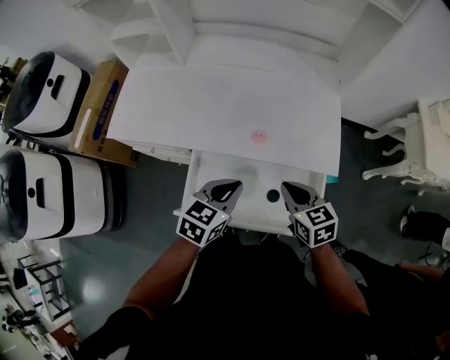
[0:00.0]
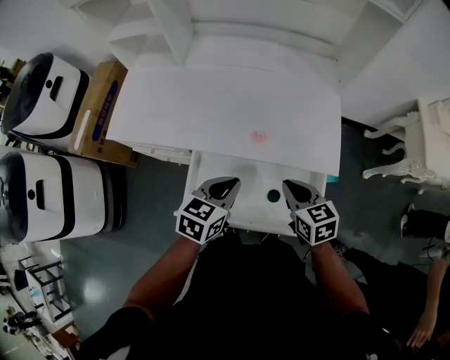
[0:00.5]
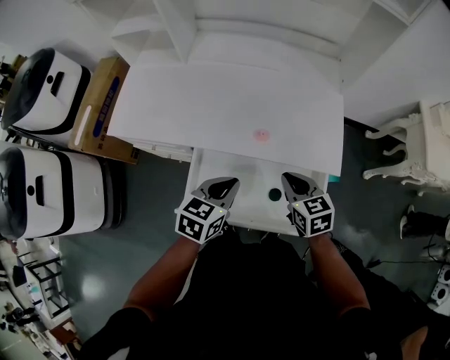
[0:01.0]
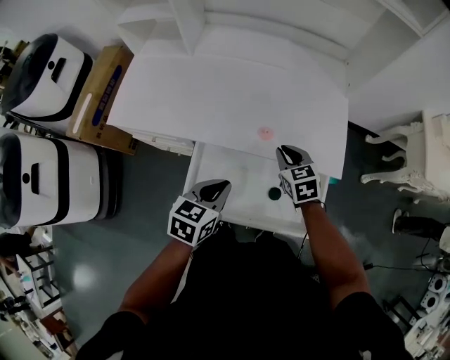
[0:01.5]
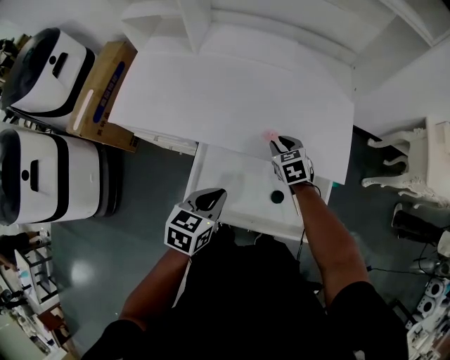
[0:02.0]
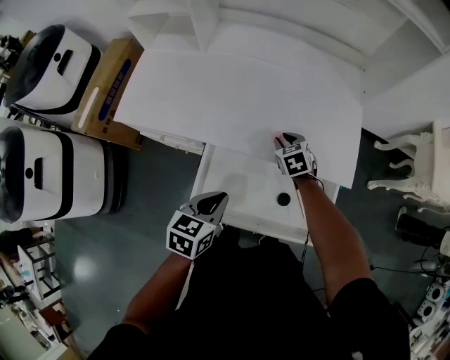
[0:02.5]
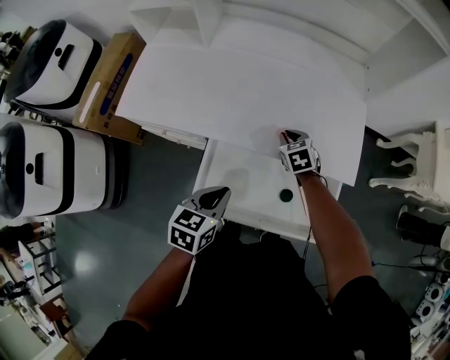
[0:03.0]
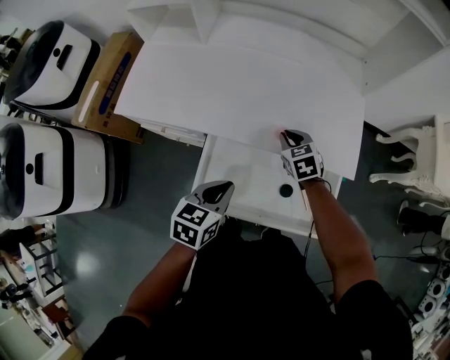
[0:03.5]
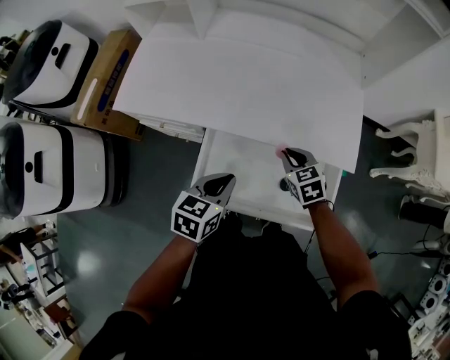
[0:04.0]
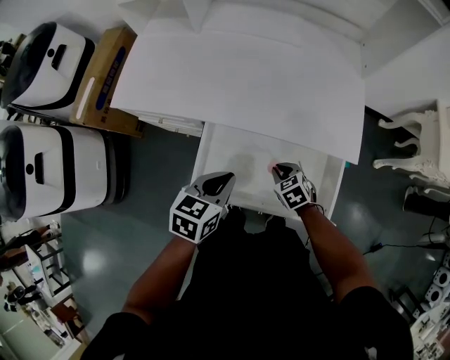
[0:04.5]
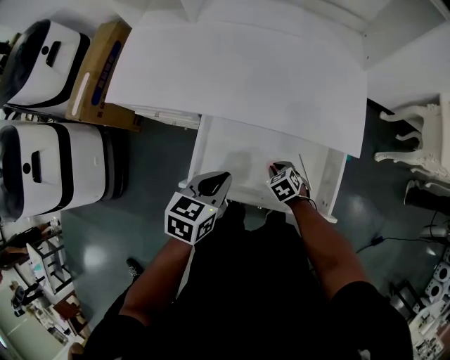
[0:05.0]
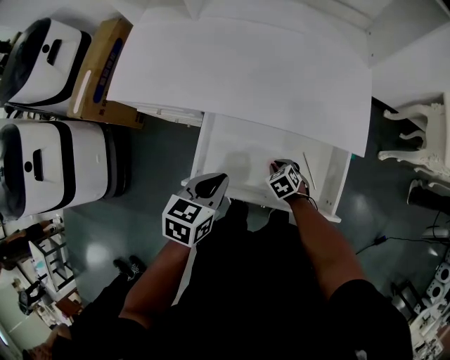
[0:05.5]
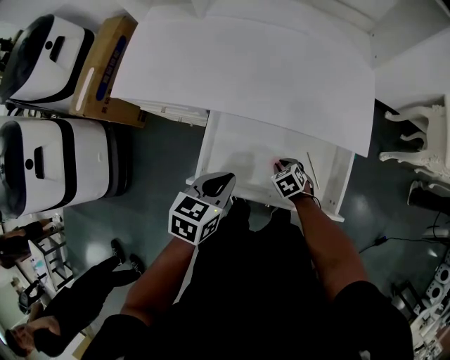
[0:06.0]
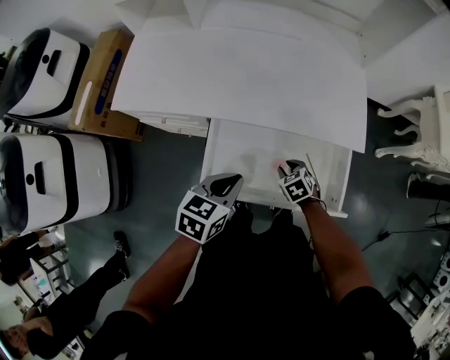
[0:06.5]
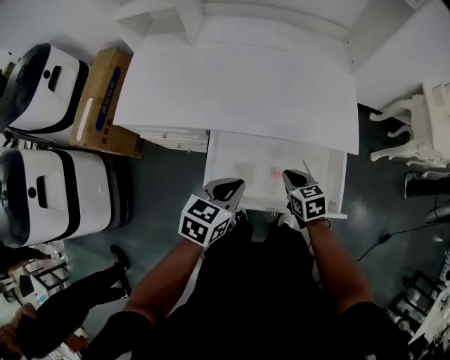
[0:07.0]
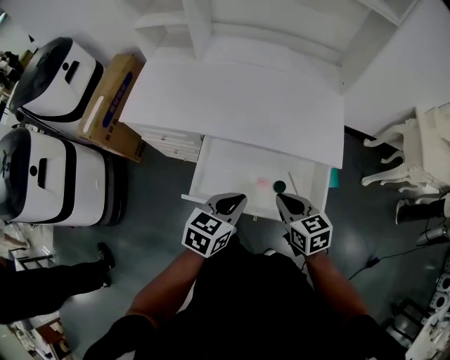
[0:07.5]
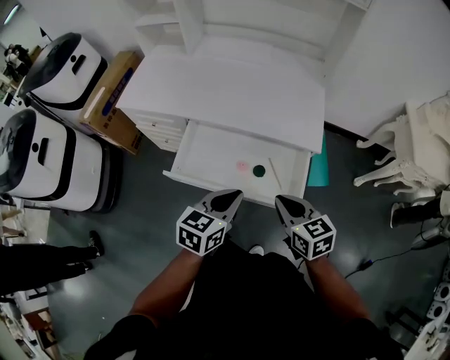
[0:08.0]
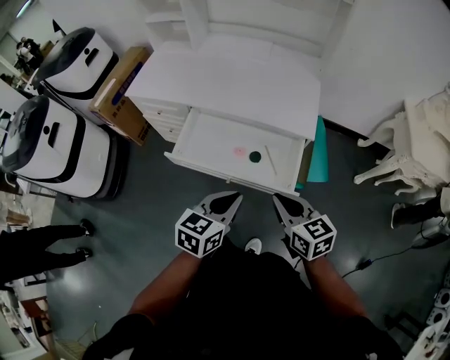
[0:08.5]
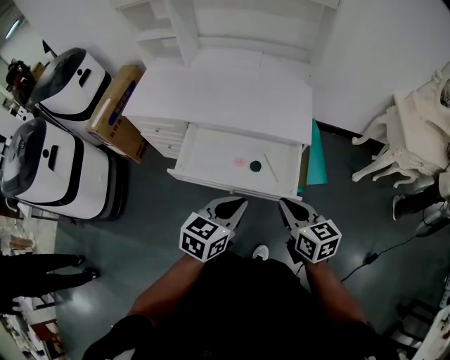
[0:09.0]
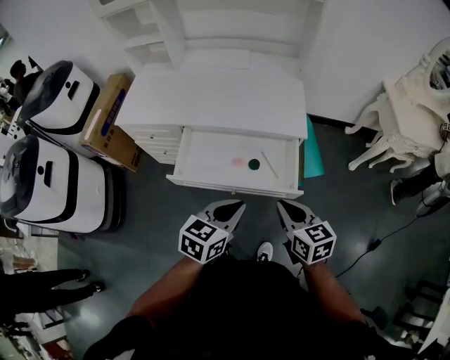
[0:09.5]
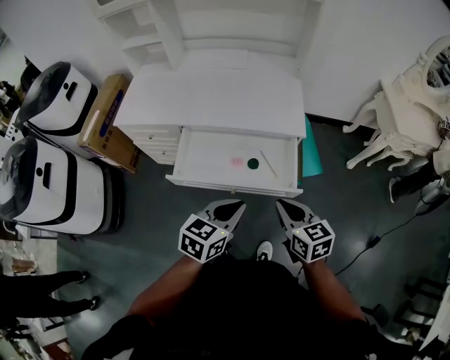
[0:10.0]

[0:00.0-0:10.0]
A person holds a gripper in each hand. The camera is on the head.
0:00.0 to 0:02.0: The right gripper heads forward, downward and to the left, covering some 20 cm, while the left gripper shifts some 5 cm to the left.
0:02.0 to 0:04.0: The right gripper goes approximately 10 cm backward.
0:04.0 to 0:06.0: The right gripper travels downward and backward by roughly 20 cm, and rotates about 20 degrees.
0:06.0 to 0:08.0: The left gripper moves to the right, backward and upward, about 20 cm. The right gripper heads upward, backward and to the right, covering some 35 cm, and angles its fingers upward, by roughly 40 degrees.
0:08.0 to 0:10.0: Both grippers move backward, some 10 cm.

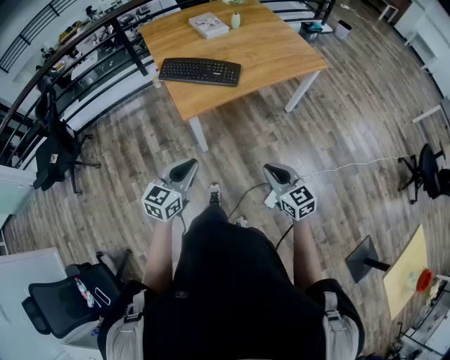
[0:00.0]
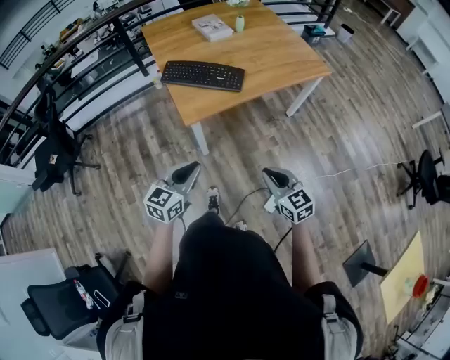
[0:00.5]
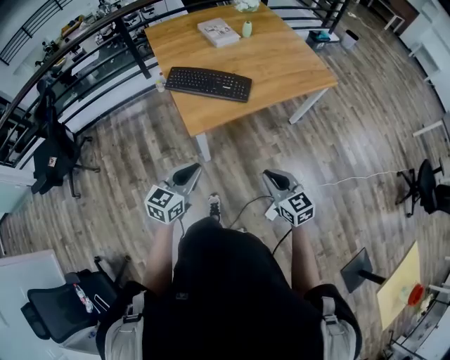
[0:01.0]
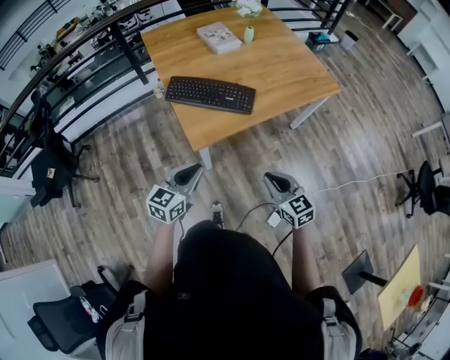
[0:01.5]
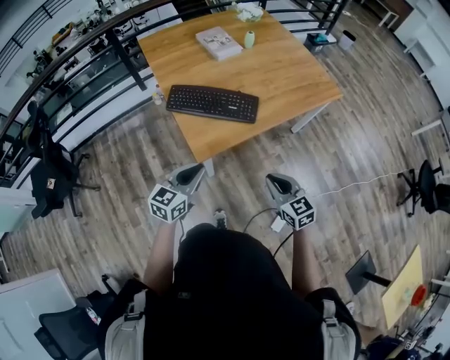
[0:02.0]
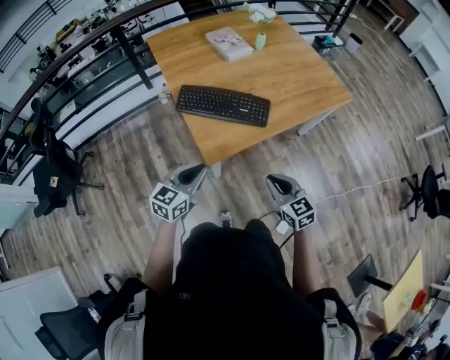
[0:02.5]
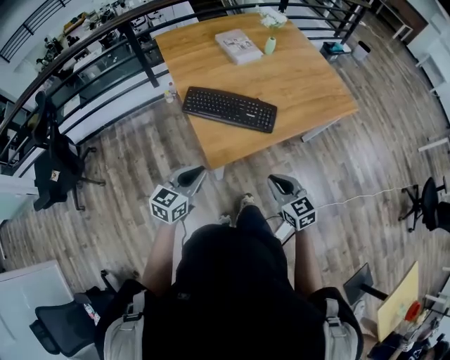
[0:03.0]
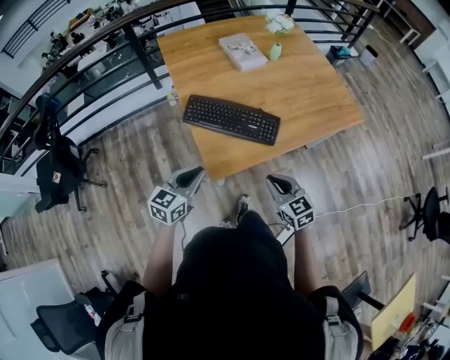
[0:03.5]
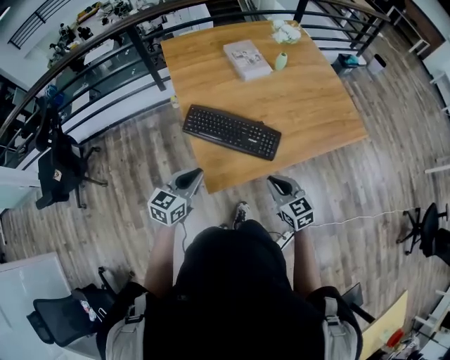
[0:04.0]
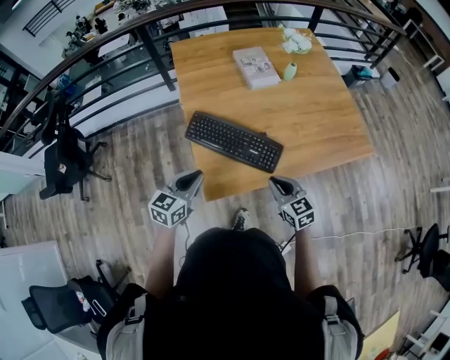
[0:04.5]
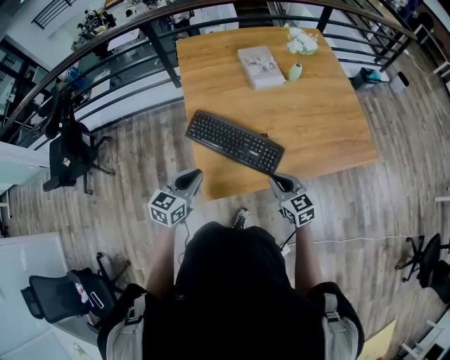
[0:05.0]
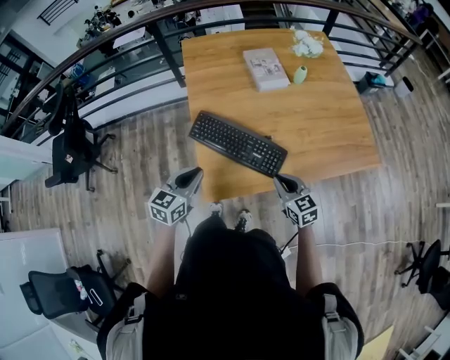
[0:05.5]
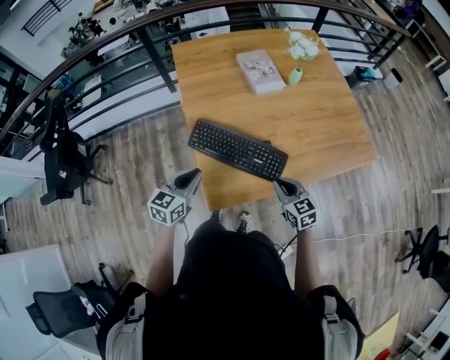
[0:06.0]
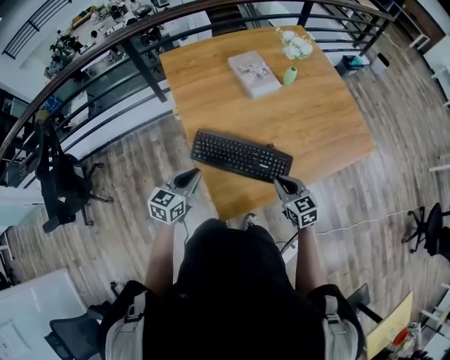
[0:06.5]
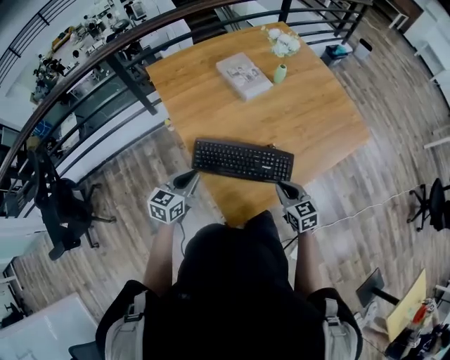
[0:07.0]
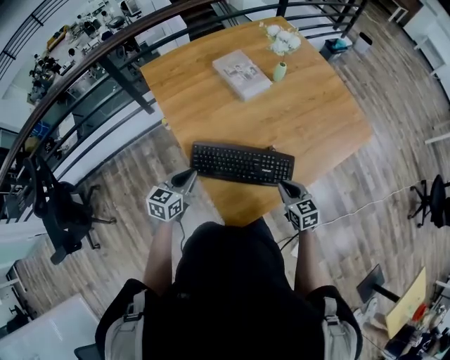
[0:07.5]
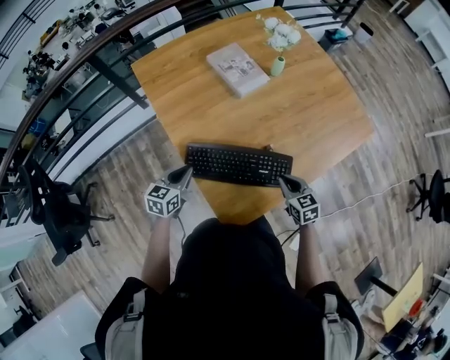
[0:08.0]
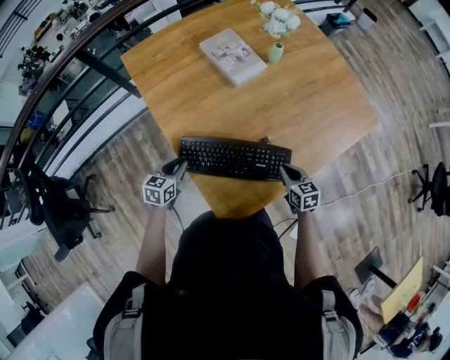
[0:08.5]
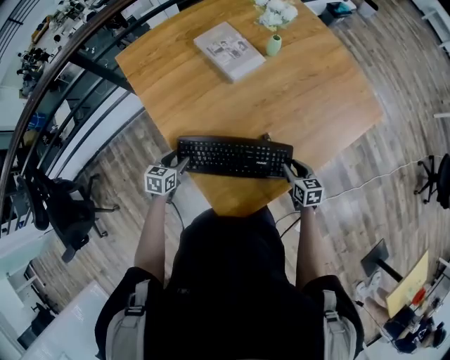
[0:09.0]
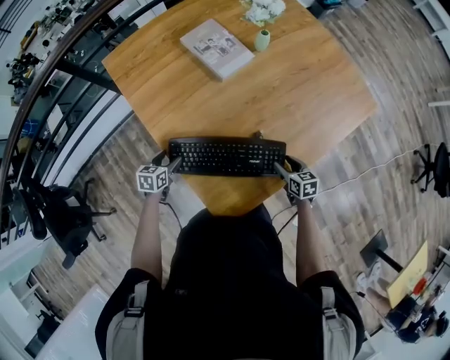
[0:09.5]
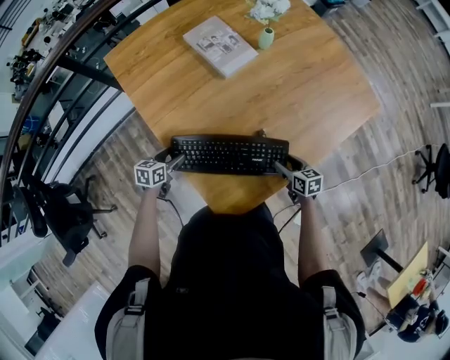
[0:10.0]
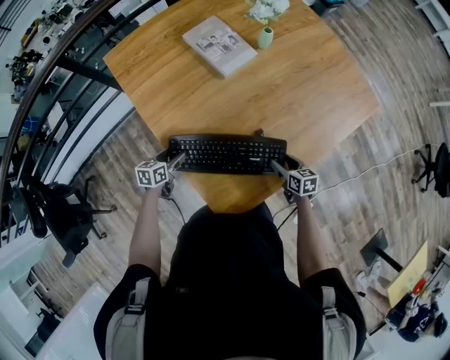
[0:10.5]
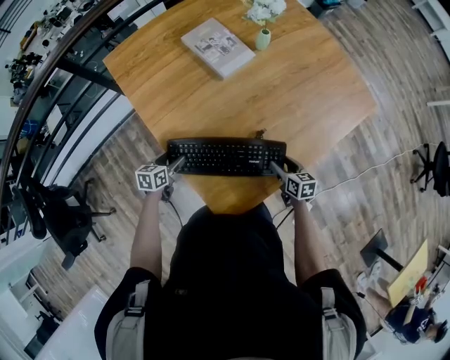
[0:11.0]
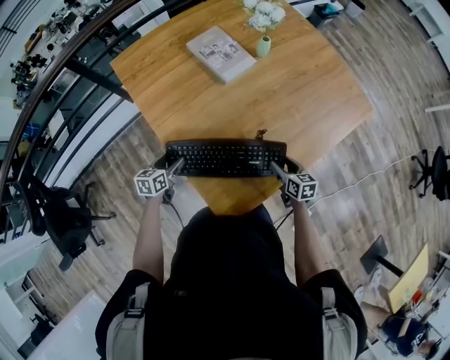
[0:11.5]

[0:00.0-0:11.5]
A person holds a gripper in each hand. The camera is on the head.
0:00.0 to 0:02.0: The left gripper moves forward, approximately 25 cm. Meanwhile the right gripper moves forward and to the left, about 20 cm.
0:02.0 to 0:04.0: The grippers both shift forward by approximately 15 cm.
0:04.0 to 0:06.0: Both grippers move forward, roughly 10 cm.
0:06.0 to 0:07.5: The right gripper shifts roughly 5 cm downward; the left gripper heads forward, to the left and downward, covering roughly 15 cm.
0:07.5 to 0:09.5: The left gripper travels downward and forward by roughly 20 cm, turns by about 20 degrees, and opens up. The right gripper is displaced downward, to the right and forward by approximately 15 cm, rotates approximately 20 degrees, and opens up.
0:09.5 to 0:11.5: The grippers move only a little.

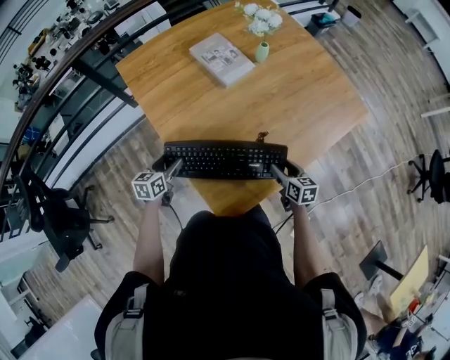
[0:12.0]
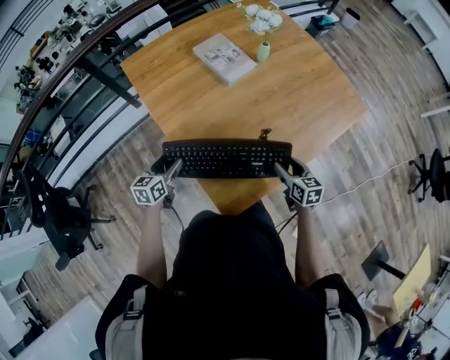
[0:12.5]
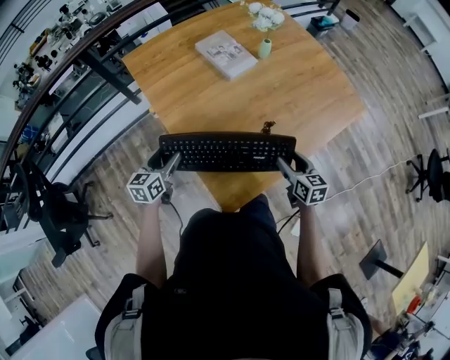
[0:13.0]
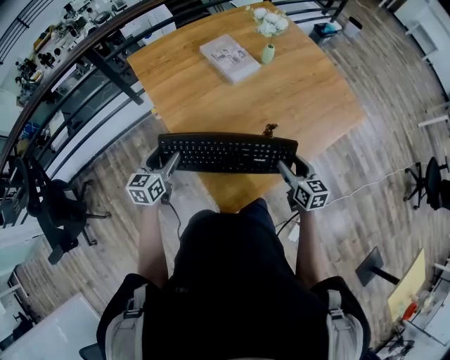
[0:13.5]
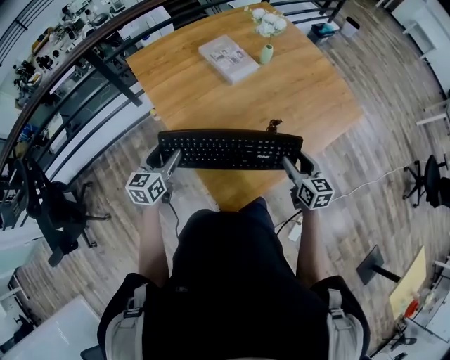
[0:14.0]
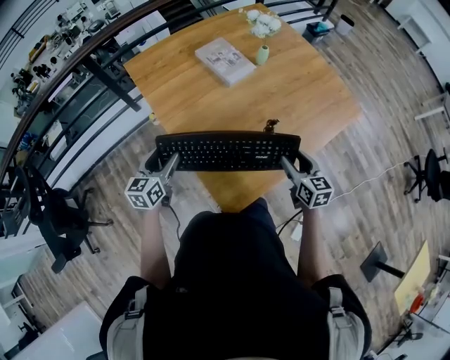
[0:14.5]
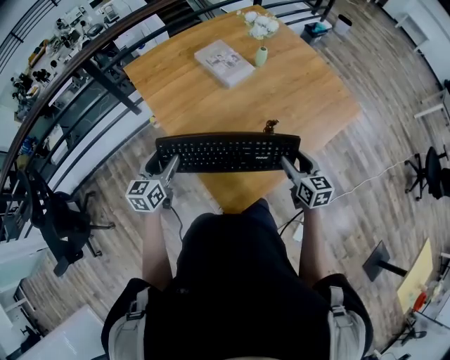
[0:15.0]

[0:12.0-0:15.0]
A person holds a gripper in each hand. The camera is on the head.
0:12.0 to 0:13.5: Both grippers move upward, about 10 cm.
0:13.5 to 0:15.0: There are only small adjustments of the grippers.

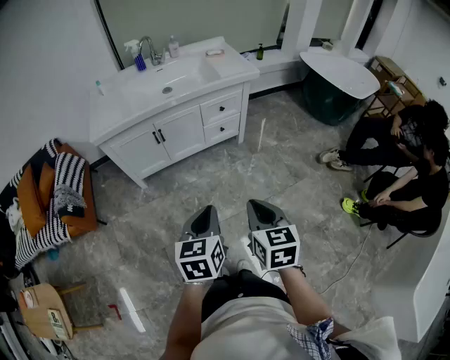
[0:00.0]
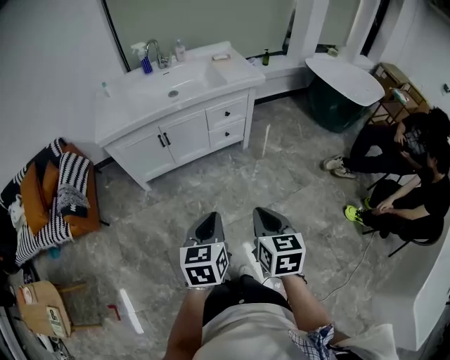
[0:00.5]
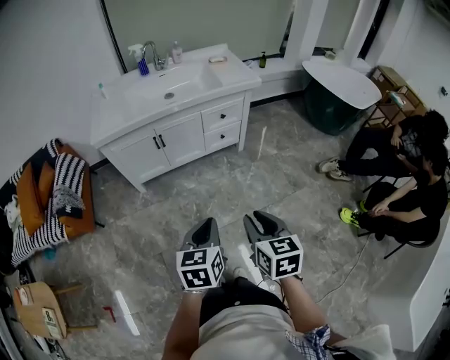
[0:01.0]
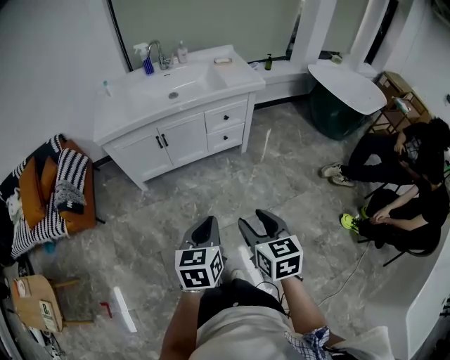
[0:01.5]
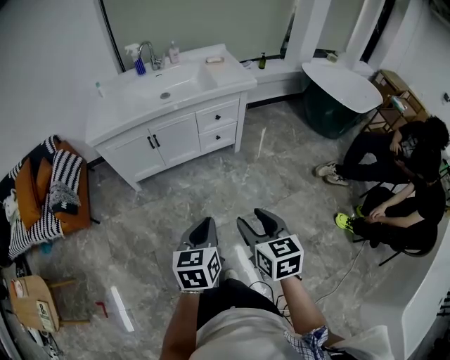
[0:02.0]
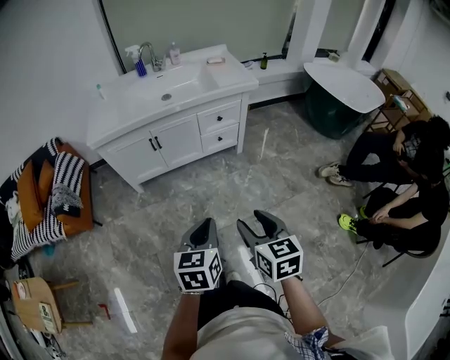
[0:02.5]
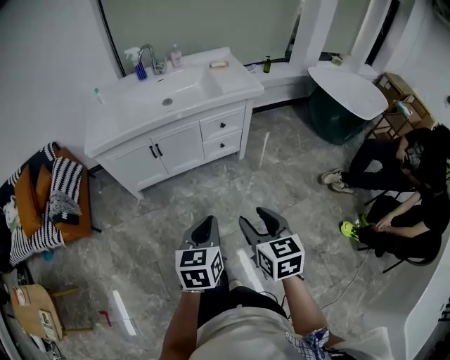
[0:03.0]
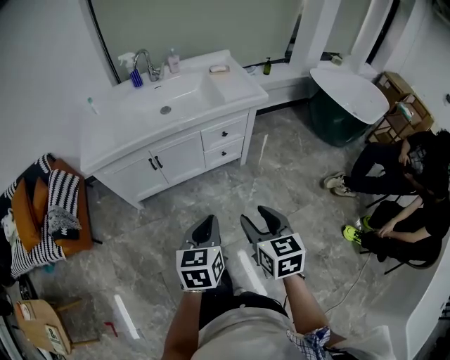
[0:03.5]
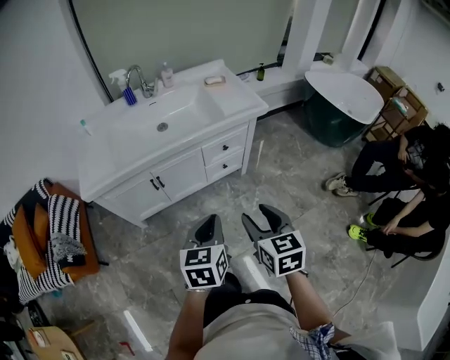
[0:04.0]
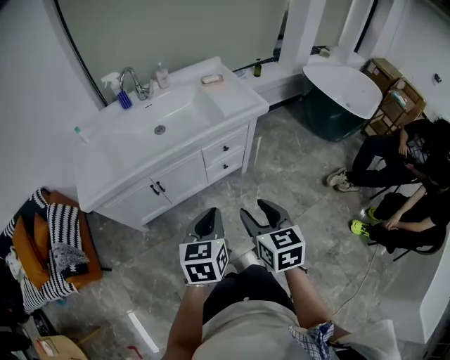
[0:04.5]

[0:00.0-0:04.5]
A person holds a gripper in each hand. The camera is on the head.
0:00.0 to 0:02.0: The right gripper opens up. Meanwhile the left gripper shifts roughly 5 cm to the right.
0:02.0 to 0:04.5: Both grippers move forward, some 30 cm.
